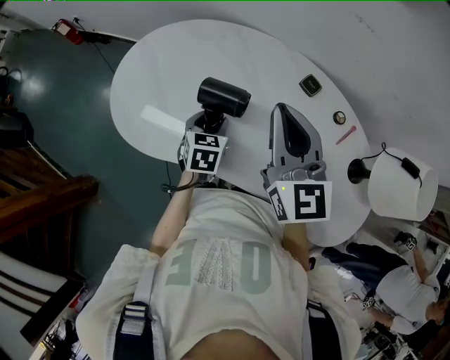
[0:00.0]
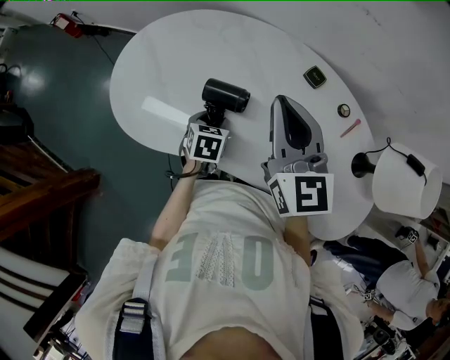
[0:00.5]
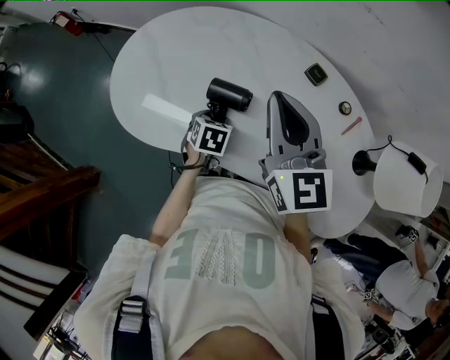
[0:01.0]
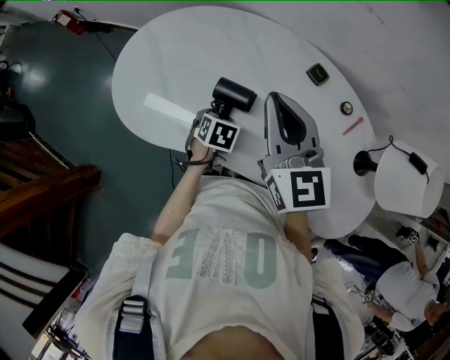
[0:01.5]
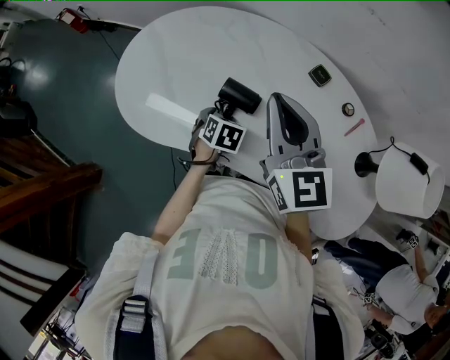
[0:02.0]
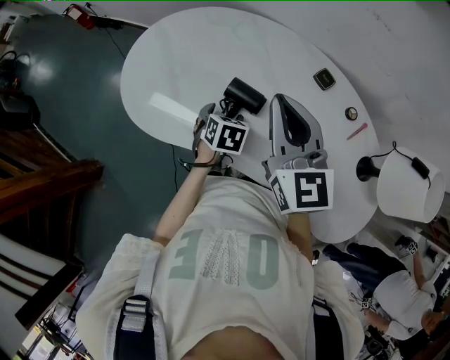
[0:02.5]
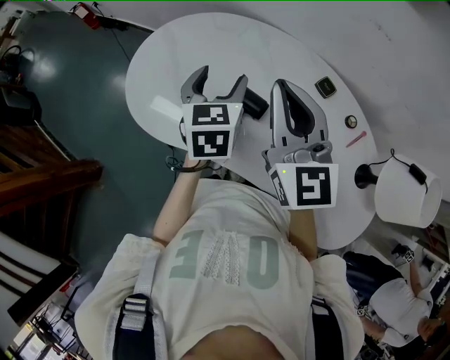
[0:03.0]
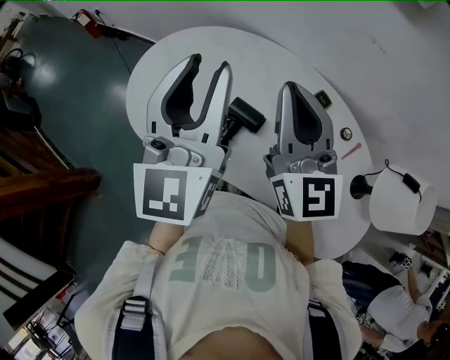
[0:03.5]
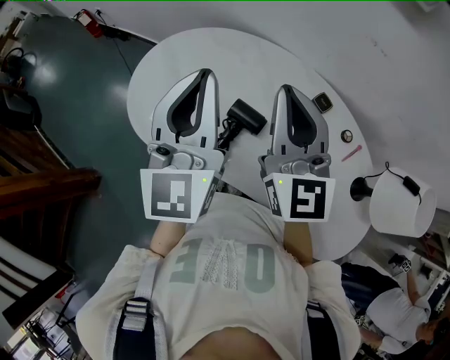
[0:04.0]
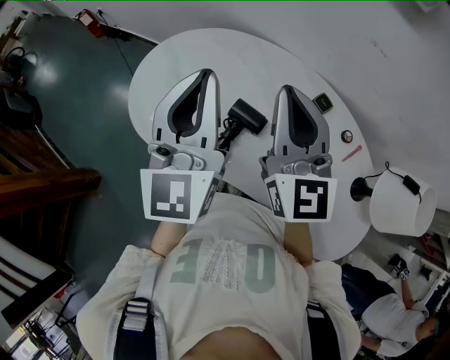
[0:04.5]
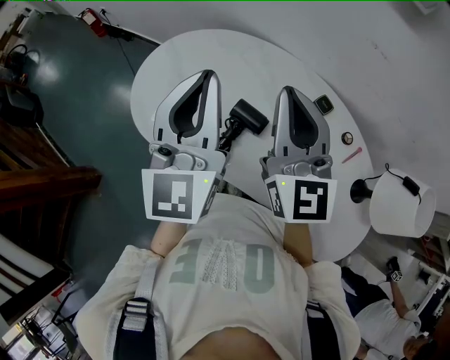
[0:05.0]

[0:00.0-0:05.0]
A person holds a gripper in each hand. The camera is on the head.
0:00.0 to 0:02.5: The left gripper opens its fingers.
0:02.5 to 0:05.0: The right gripper is displaced upward by approximately 10 cm, while the left gripper heads upward, covering about 40 cm, points its fingers some 70 degrees further upward, and closes.

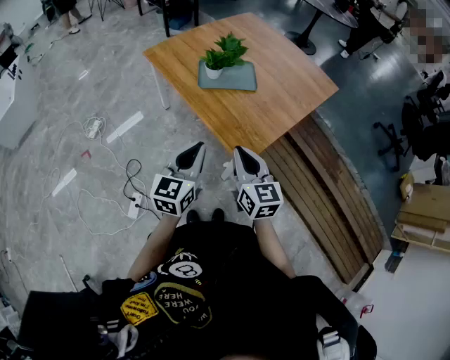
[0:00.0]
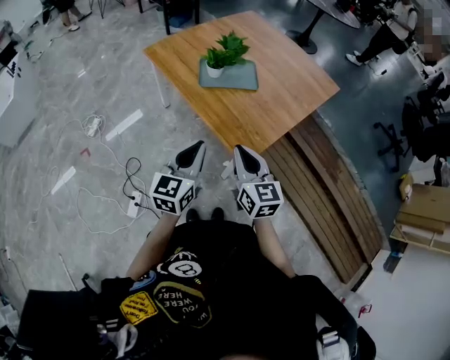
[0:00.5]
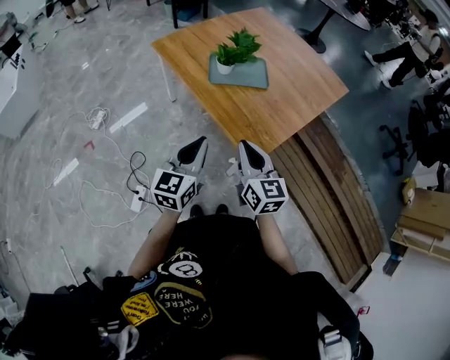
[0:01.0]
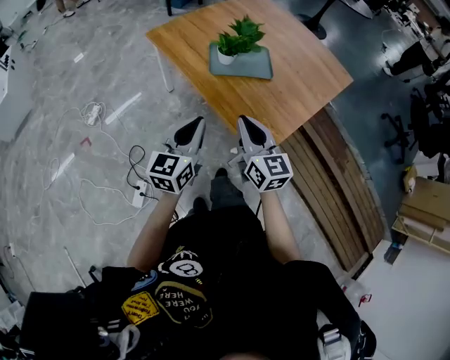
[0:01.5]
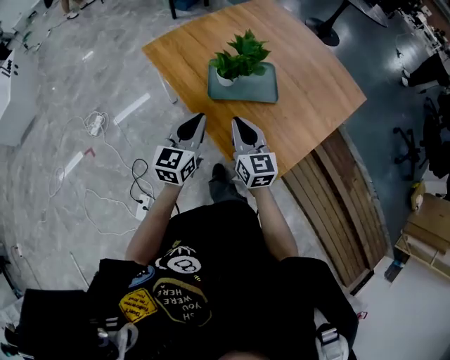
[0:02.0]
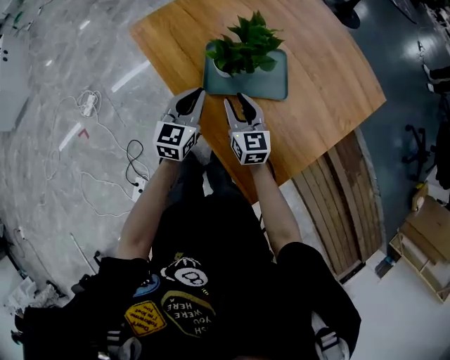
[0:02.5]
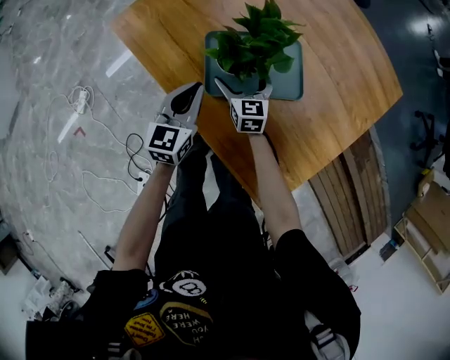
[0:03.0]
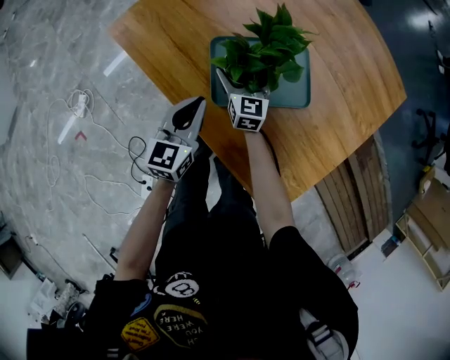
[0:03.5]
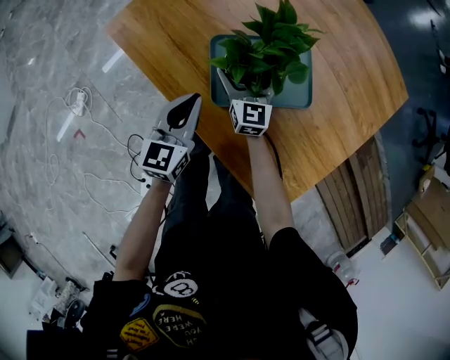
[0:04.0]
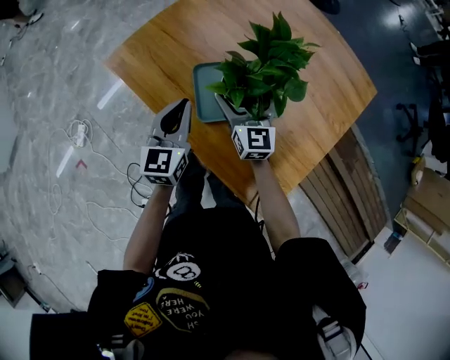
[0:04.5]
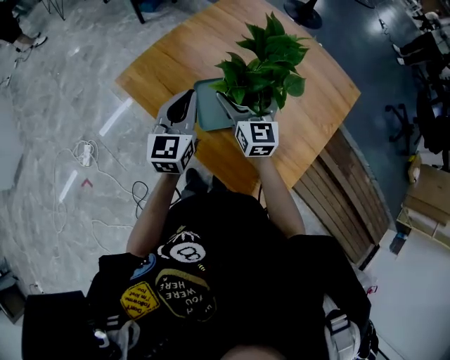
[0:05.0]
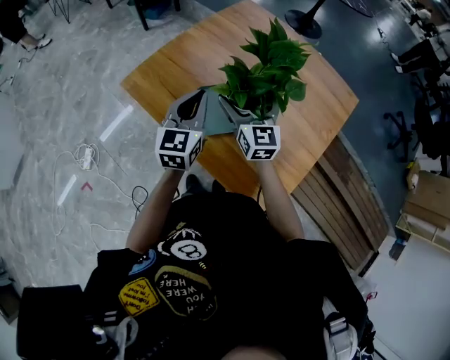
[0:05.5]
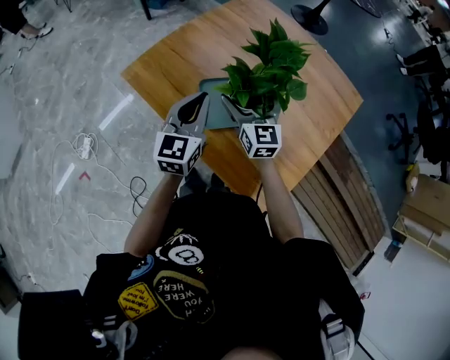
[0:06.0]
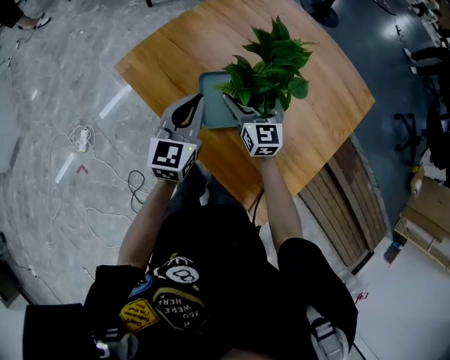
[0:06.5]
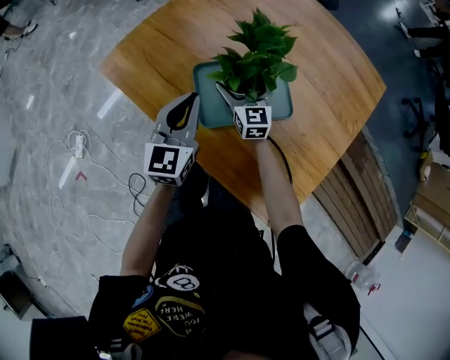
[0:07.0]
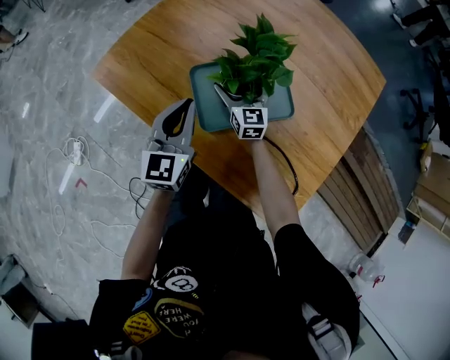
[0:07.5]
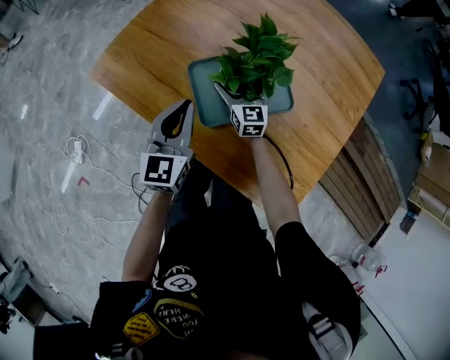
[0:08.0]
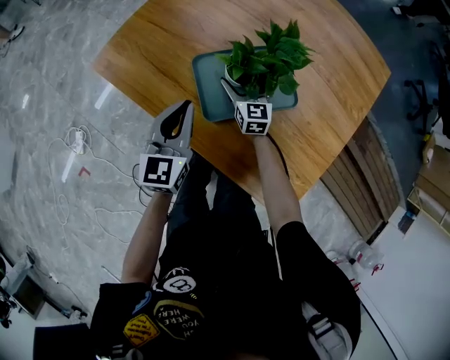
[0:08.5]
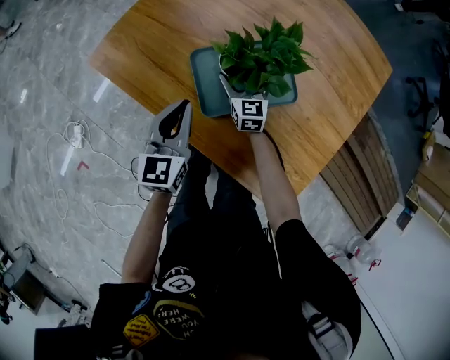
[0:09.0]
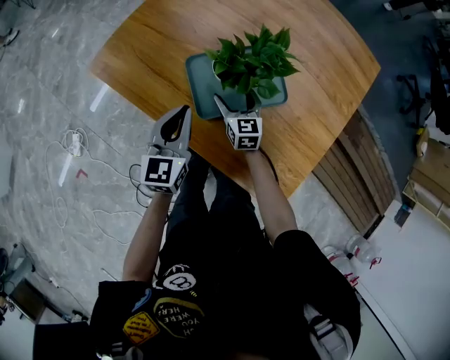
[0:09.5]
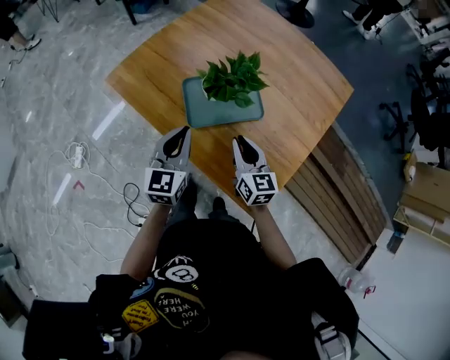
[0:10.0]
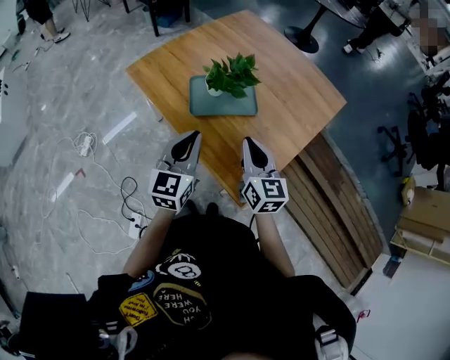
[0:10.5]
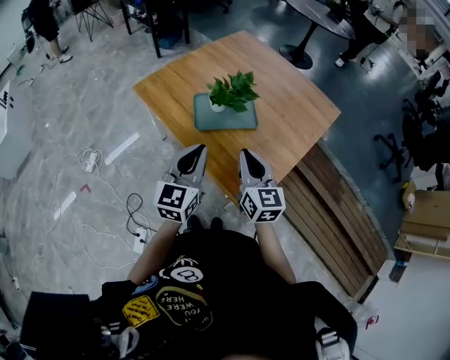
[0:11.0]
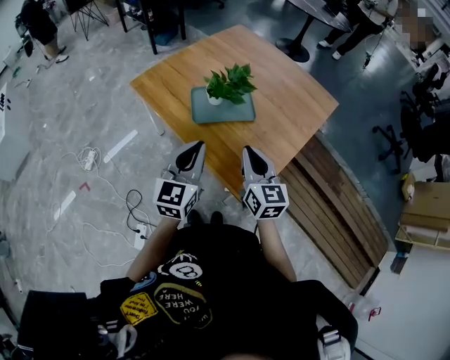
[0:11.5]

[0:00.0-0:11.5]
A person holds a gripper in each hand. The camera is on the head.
0:00.0 to 0:02.0: Both grippers travel together forward, roughly 25 cm.
0:02.0 to 0:04.0: The grippers both shift forward and downward by roughly 30 cm. The right gripper opens up.
0:04.0 to 0:06.0: Both grippers travel together upward, about 20 cm.
0:06.0 to 0:07.5: The right gripper moves downward, some 25 cm, while the left gripper moves downward, some 15 cm.
0:07.5 to 0:09.5: The right gripper heads backward, covering roughly 5 cm.
0:09.5 to 0:11.5: Both grippers travel together backward and upward, about 40 cm. The right gripper closes.

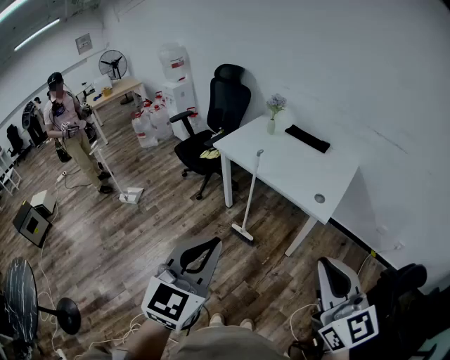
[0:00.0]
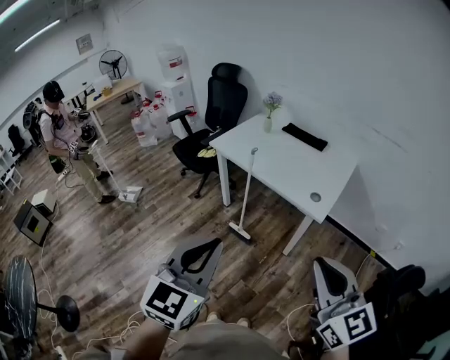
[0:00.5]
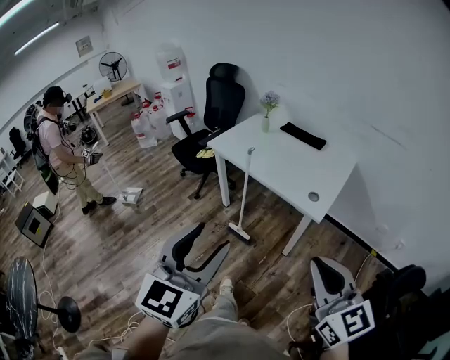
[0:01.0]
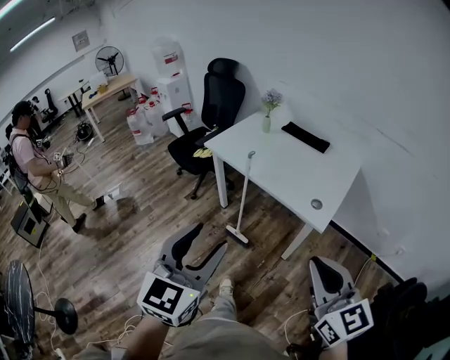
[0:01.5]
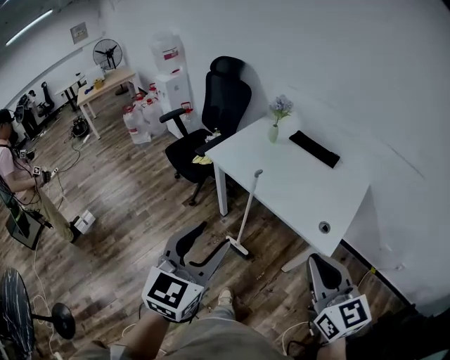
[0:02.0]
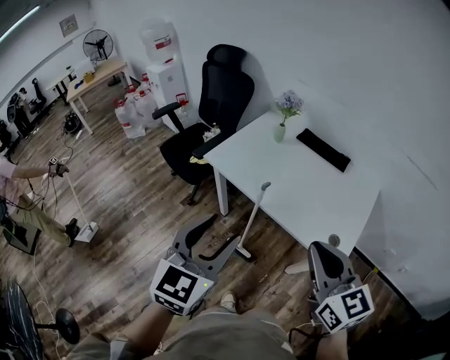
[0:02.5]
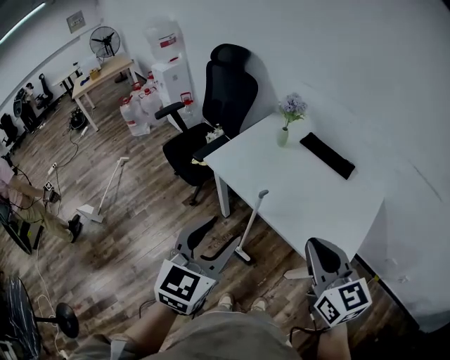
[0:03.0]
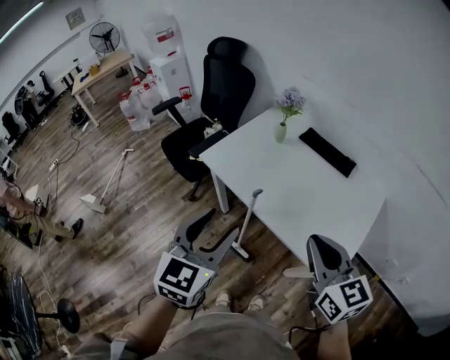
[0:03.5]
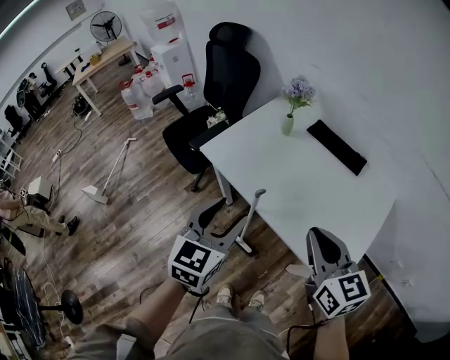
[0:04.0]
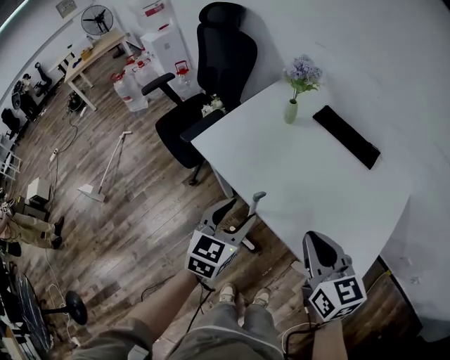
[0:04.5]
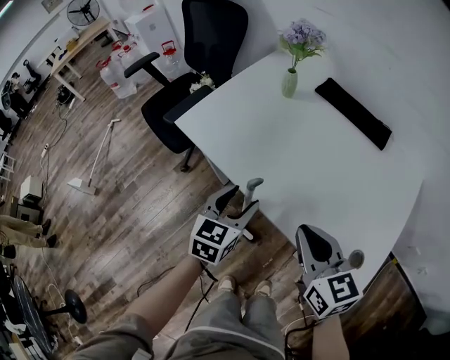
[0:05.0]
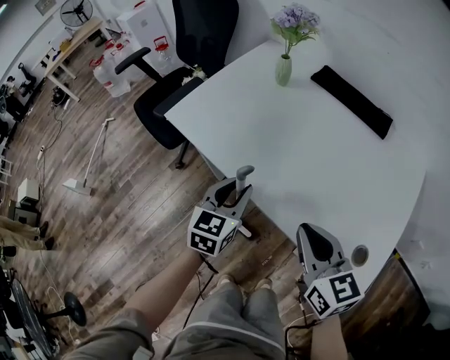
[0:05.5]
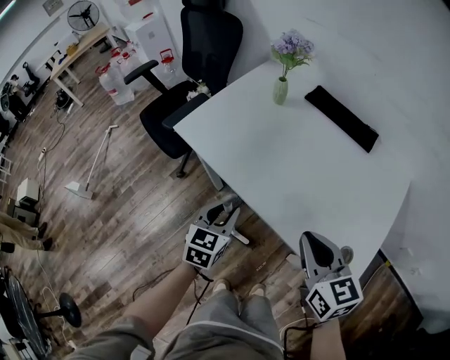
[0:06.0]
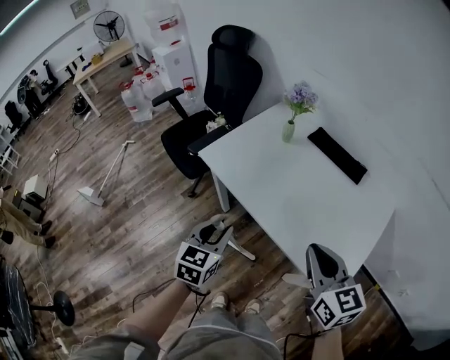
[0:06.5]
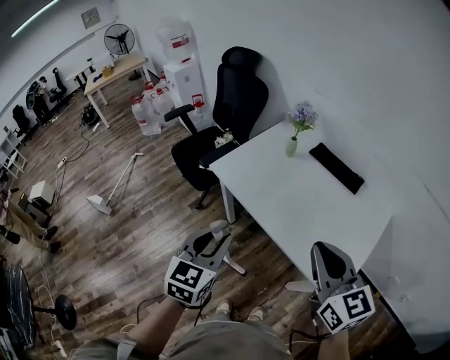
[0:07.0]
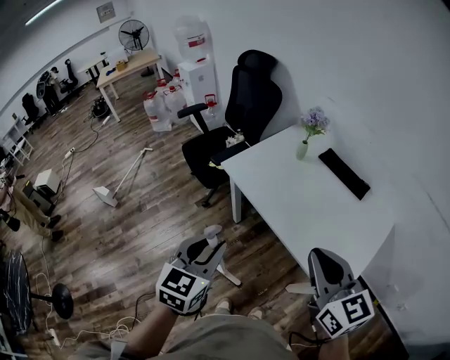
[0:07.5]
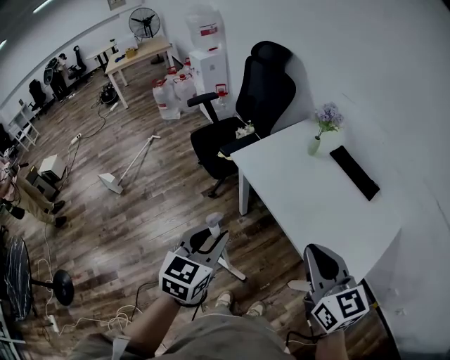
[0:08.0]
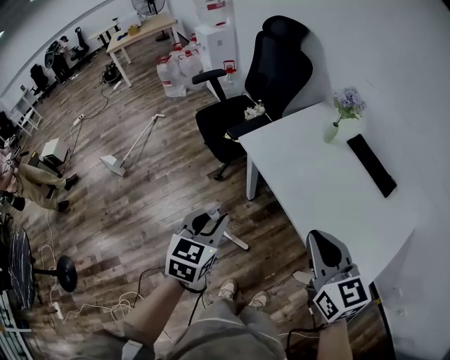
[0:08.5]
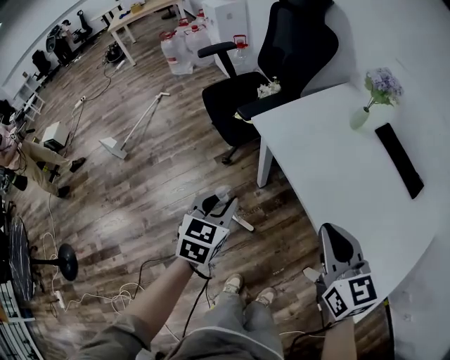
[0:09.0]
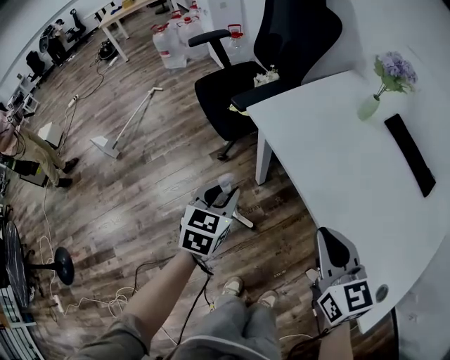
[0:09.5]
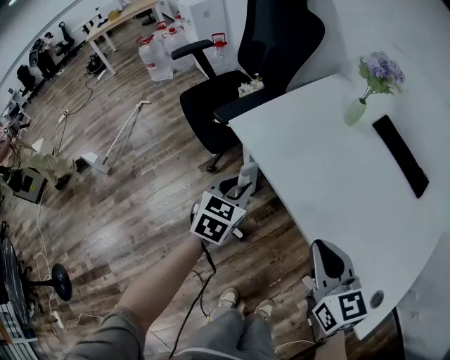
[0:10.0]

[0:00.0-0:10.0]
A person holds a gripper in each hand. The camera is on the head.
0:00.0 to 0:02.0: Both grippers travel together forward, about 20 cm. The left gripper opens.
0:02.0 to 0:04.0: The left gripper goes about 30 cm forward and downward; the right gripper shifts about 25 cm forward.
0:04.0 to 0:06.0: The right gripper shifts roughly 15 cm downward; the left gripper is displaced downward by some 25 cm, and closes.
0:06.0 to 0:08.0: The right gripper travels upward and to the left by approximately 20 cm, while the left gripper goes about 30 cm upward, backward and to the left.
0:08.0 to 0:10.0: The grippers both shift downward and forward by roughly 35 cm.
